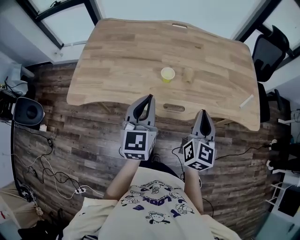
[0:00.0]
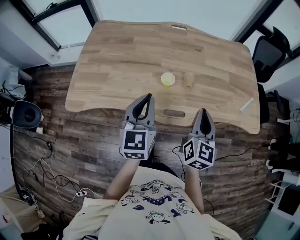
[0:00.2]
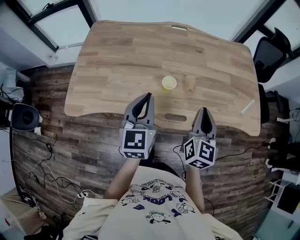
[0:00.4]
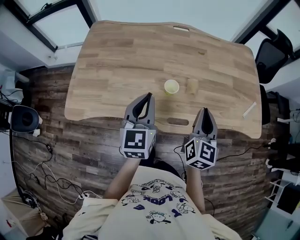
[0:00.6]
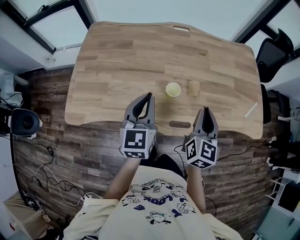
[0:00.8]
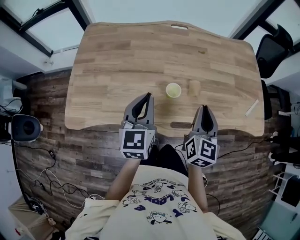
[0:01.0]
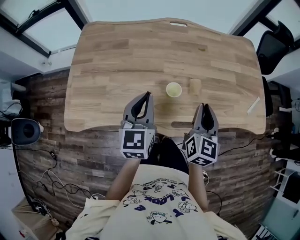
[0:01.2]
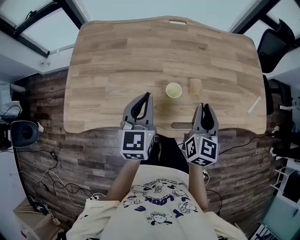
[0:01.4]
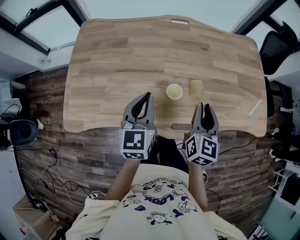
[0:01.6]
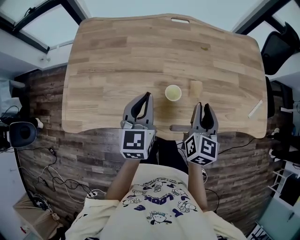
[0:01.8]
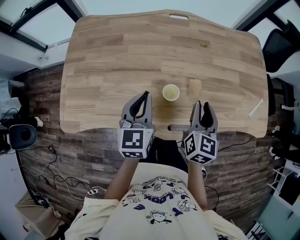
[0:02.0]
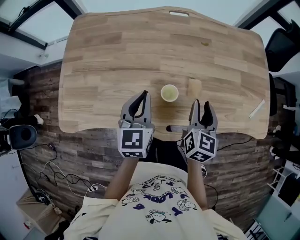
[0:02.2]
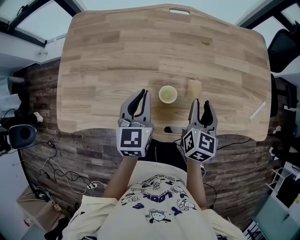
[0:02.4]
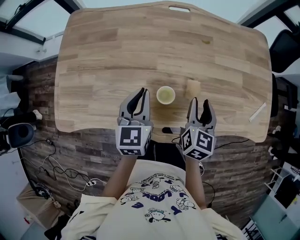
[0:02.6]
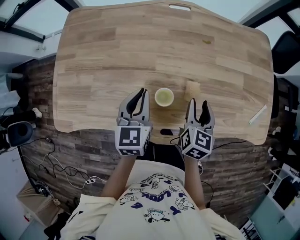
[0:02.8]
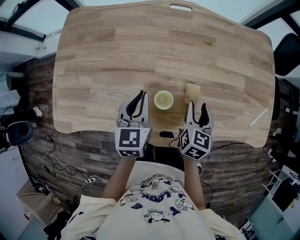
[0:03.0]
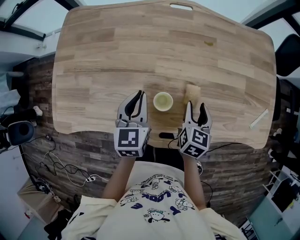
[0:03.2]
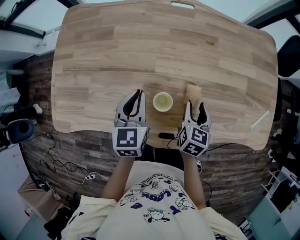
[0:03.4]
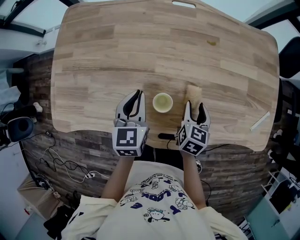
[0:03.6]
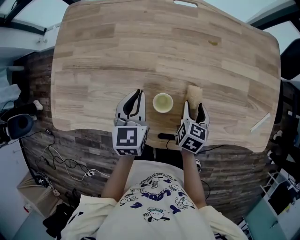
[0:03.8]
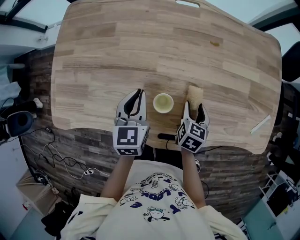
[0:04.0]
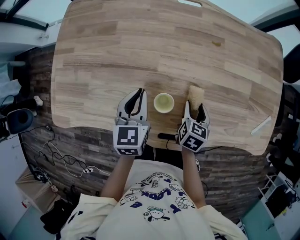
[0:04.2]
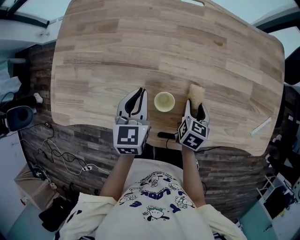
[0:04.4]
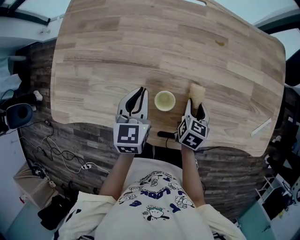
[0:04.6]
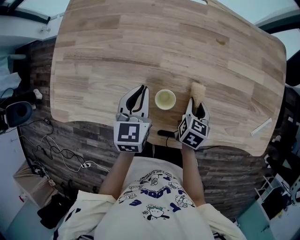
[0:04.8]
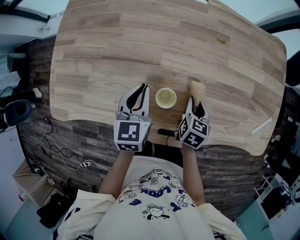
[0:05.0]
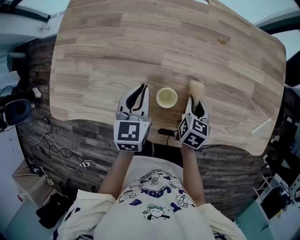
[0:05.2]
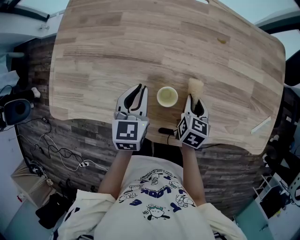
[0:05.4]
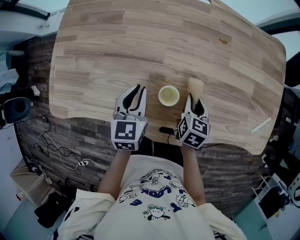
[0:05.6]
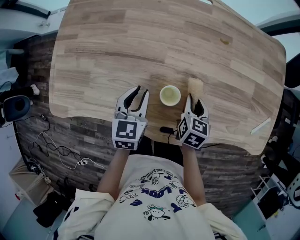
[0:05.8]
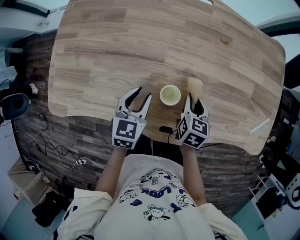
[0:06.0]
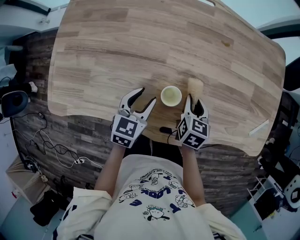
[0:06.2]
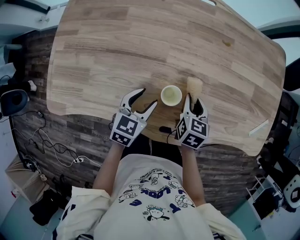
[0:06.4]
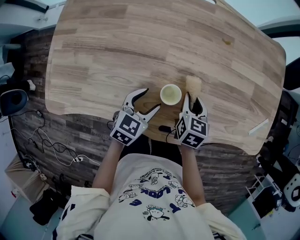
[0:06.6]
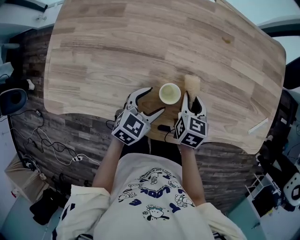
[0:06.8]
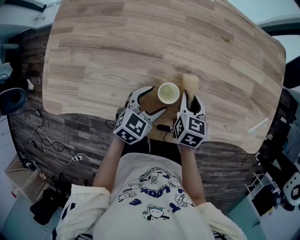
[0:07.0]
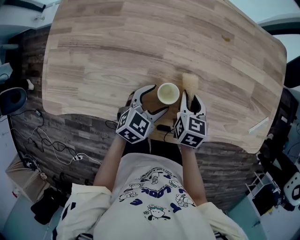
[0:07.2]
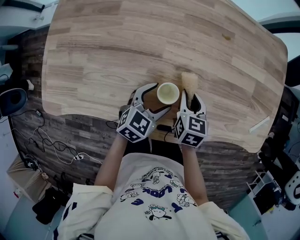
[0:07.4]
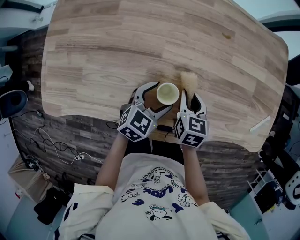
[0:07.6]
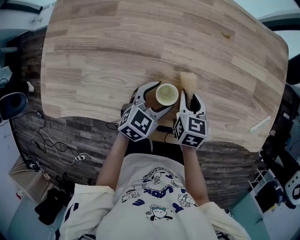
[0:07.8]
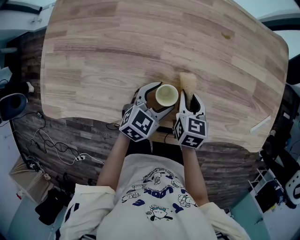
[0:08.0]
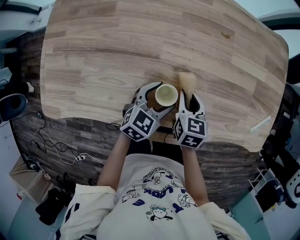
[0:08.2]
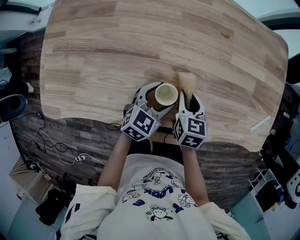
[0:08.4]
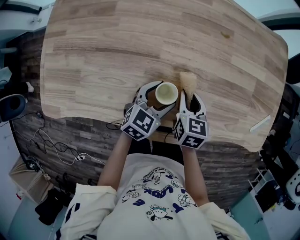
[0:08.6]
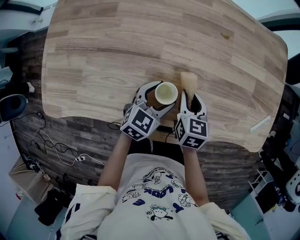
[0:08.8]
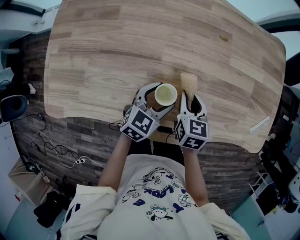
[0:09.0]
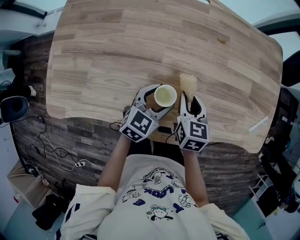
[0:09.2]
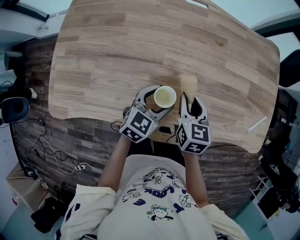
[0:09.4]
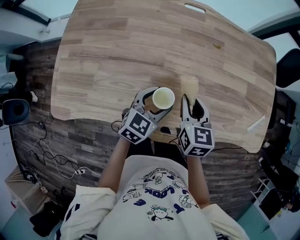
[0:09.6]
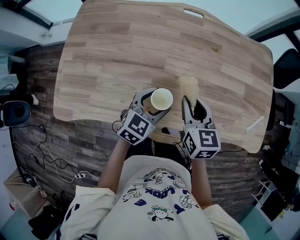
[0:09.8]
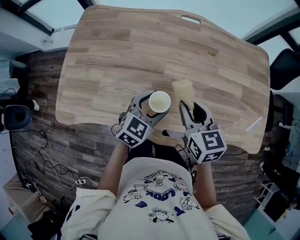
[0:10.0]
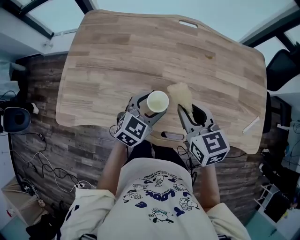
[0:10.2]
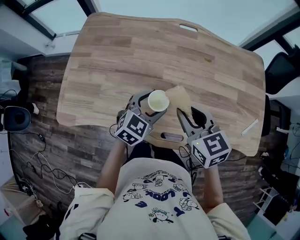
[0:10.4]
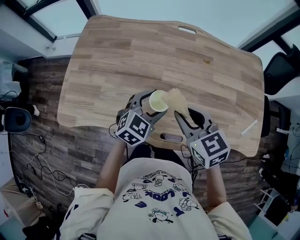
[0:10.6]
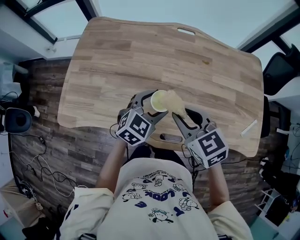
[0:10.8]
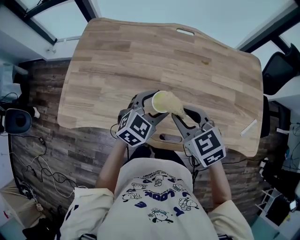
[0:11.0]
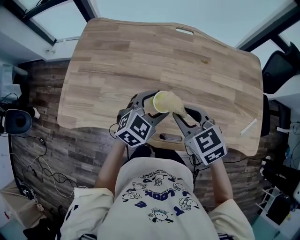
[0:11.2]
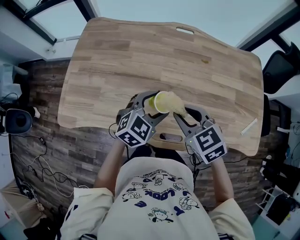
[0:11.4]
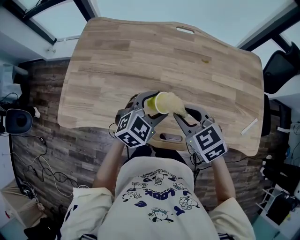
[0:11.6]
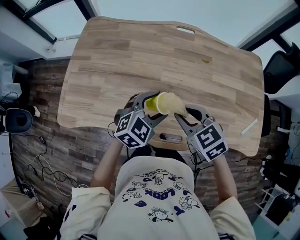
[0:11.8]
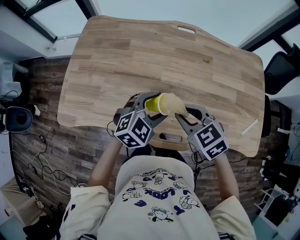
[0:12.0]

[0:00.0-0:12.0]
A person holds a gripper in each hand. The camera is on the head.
0:00.0 to 0:01.6: The grippers both shift forward and to the left by roughly 15 cm.
0:01.6 to 0:03.0: The grippers both shift downward and forward by some 10 cm. The right gripper opens up.
0:03.0 to 0:04.4: The right gripper heads downward, covering roughly 10 cm.
0:04.4 to 0:06.0: The left gripper ends up roughly 5 cm from where it was, and opens; the right gripper closes up.
0:06.0 to 0:07.6: The left gripper heads to the right, covering approximately 10 cm, changes its angle by about 30 degrees, and opens up.
0:07.6 to 0:09.0: The grippers make only small movements.
0:09.0 to 0:10.4: The left gripper shifts approximately 10 cm upward. Meanwhile the right gripper goes some 20 cm upward, and rotates some 30 degrees.
0:10.4 to 0:12.0: The right gripper turns by approximately 20 degrees.

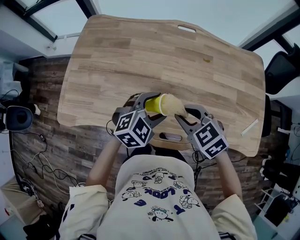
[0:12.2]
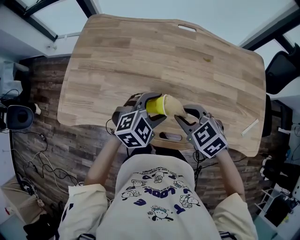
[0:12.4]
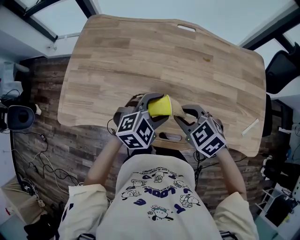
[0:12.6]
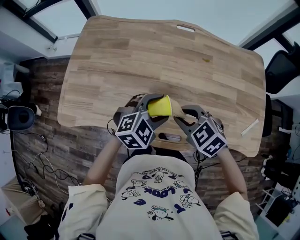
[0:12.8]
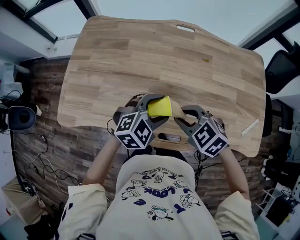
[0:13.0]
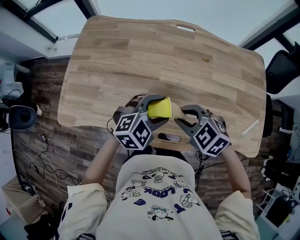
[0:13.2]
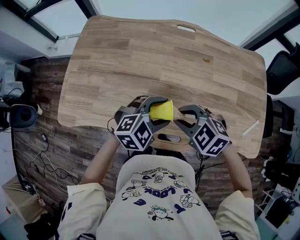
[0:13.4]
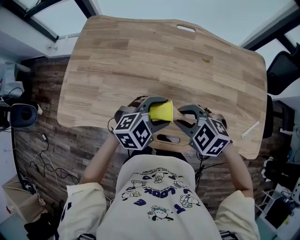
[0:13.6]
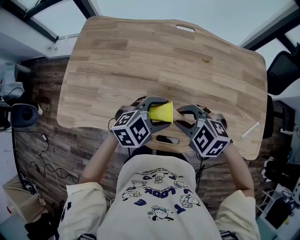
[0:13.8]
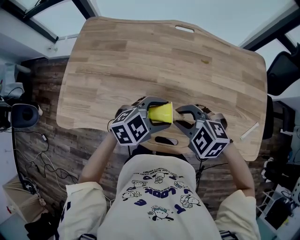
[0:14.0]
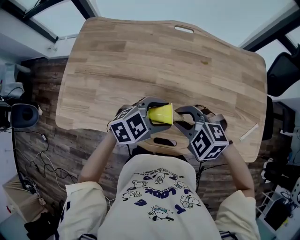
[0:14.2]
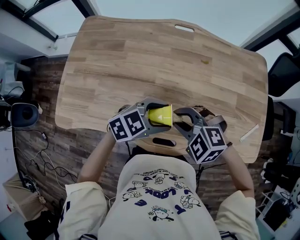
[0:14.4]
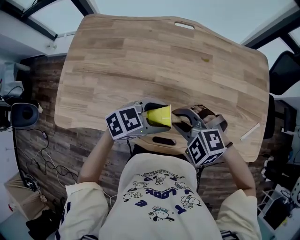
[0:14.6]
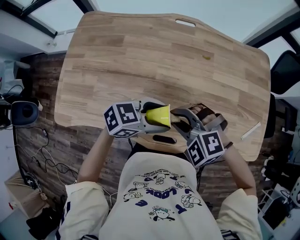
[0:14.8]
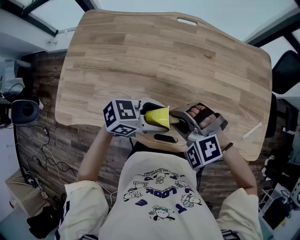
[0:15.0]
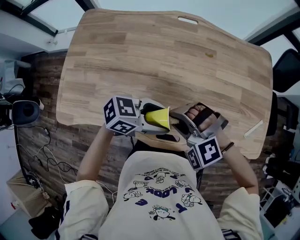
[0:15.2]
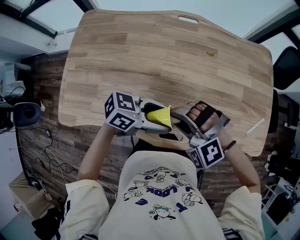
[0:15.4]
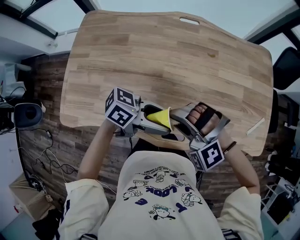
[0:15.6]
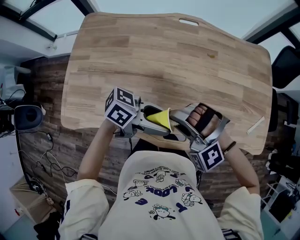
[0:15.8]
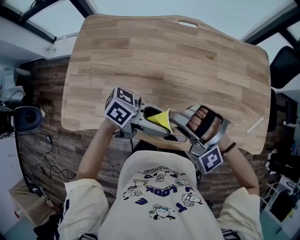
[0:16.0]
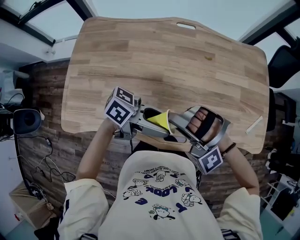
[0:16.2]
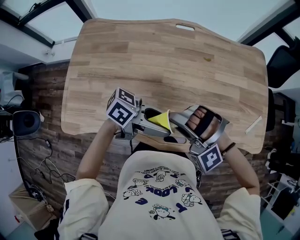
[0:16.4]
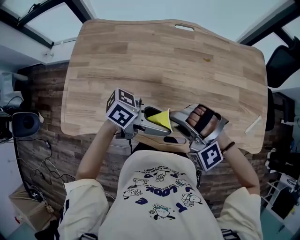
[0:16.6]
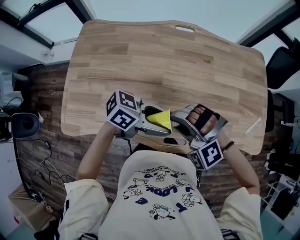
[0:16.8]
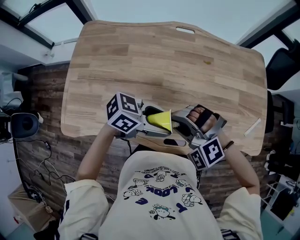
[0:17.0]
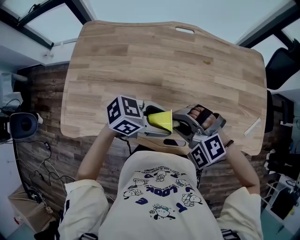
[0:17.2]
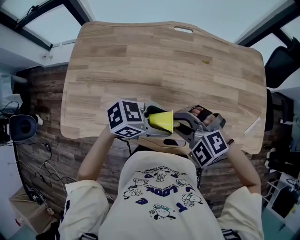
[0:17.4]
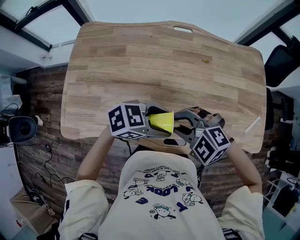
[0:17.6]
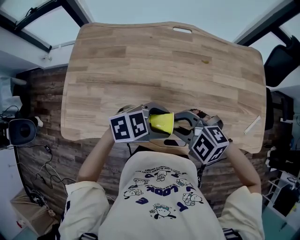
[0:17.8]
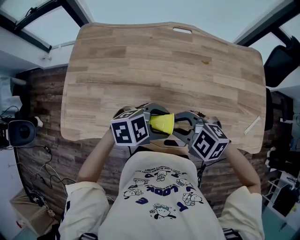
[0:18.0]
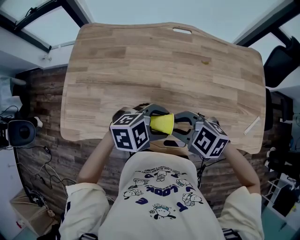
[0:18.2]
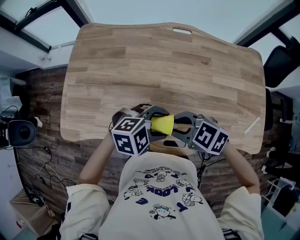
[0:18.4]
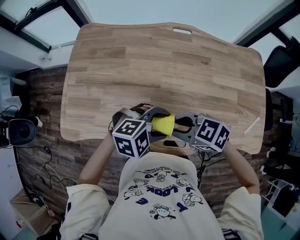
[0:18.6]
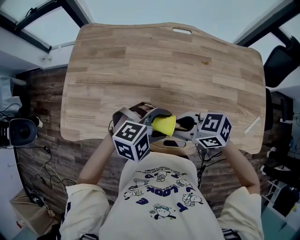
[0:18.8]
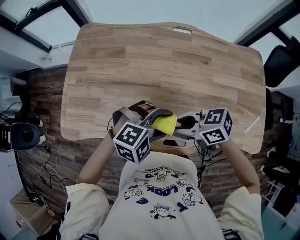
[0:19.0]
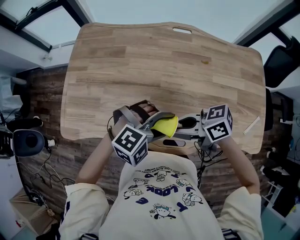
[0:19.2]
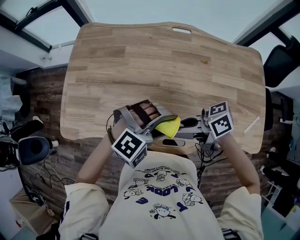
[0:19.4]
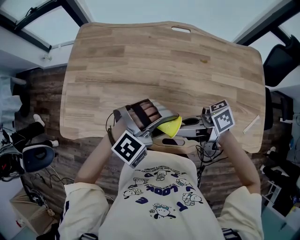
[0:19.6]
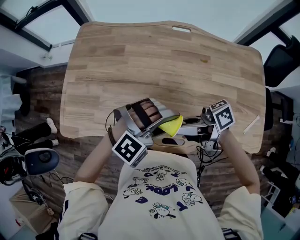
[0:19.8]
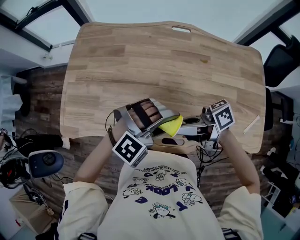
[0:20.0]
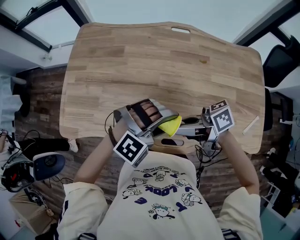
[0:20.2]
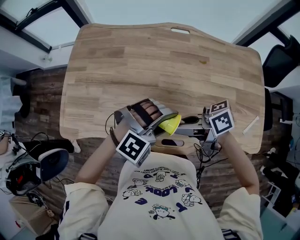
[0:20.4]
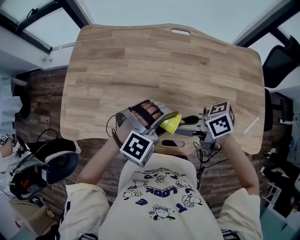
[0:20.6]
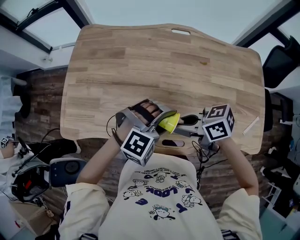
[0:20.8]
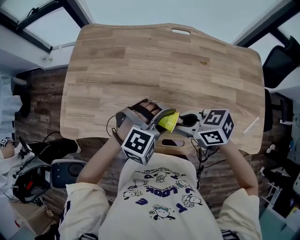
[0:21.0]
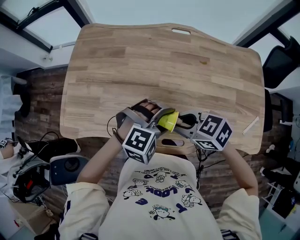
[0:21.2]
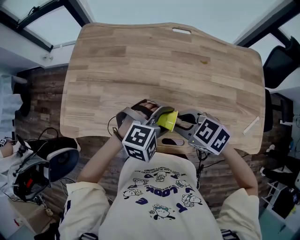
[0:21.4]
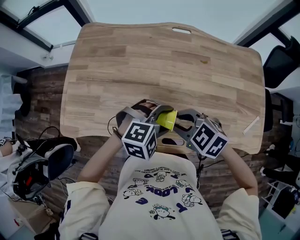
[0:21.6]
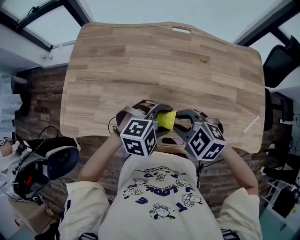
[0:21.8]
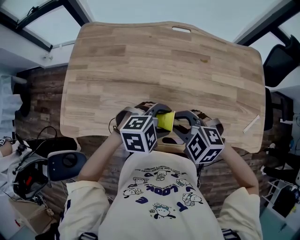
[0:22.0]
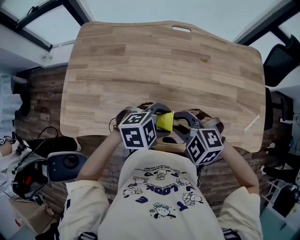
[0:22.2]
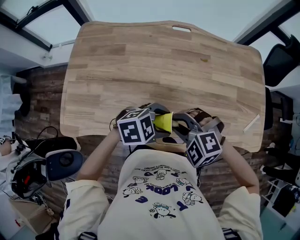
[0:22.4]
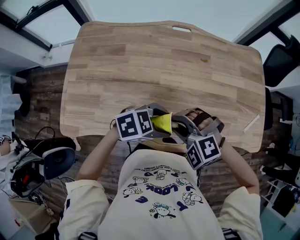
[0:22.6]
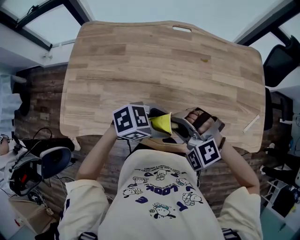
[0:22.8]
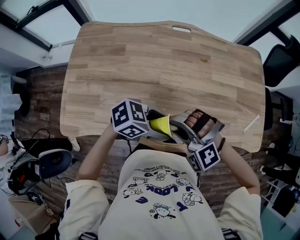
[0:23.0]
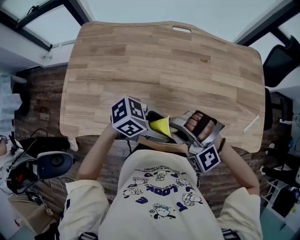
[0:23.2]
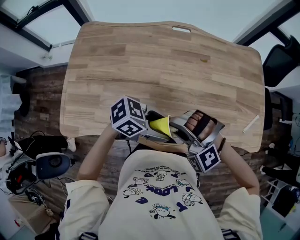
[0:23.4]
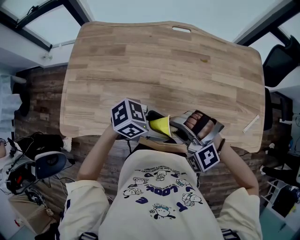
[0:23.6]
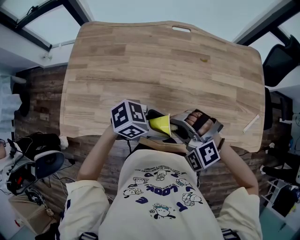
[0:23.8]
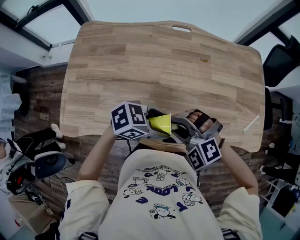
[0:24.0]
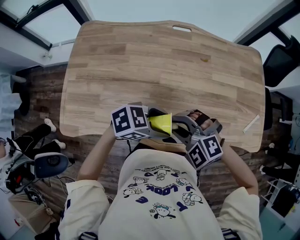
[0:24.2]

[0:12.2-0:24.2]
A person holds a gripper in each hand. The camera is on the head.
0:12.2 to 0:13.8: The right gripper turns by roughly 20 degrees.
0:13.8 to 0:15.2: The right gripper turns by roughly 40 degrees; the left gripper swivels approximately 40 degrees.
0:15.2 to 0:16.6: The right gripper changes place by roughly 5 cm; the left gripper turns by roughly 20 degrees.
0:16.6 to 0:18.2: The right gripper rotates around the line of its fingers by about 60 degrees, clockwise from behind. The left gripper points its fingers some 40 degrees further downward.
0:18.2 to 0:19.8: The left gripper twists some 50 degrees clockwise, seen from behind; the right gripper rolls clockwise, seen from behind, by roughly 70 degrees.
0:19.8 to 0:21.2: The left gripper changes its angle by roughly 20 degrees. The right gripper tips its fingers downward by some 40 degrees.
0:21.2 to 0:22.6: The left gripper rotates about 50 degrees; the right gripper twists about 50 degrees counterclockwise, seen from behind.
